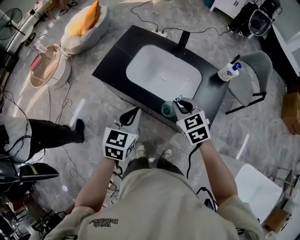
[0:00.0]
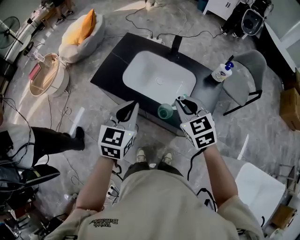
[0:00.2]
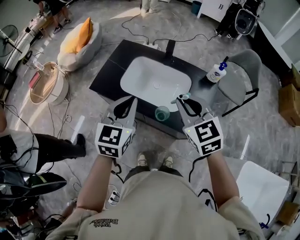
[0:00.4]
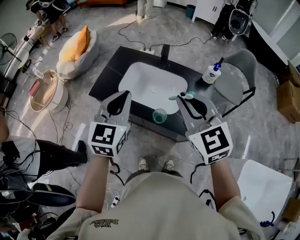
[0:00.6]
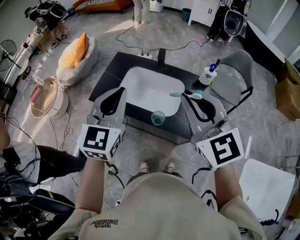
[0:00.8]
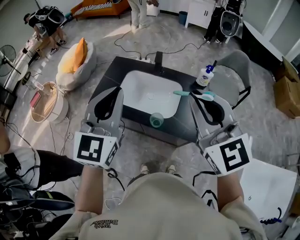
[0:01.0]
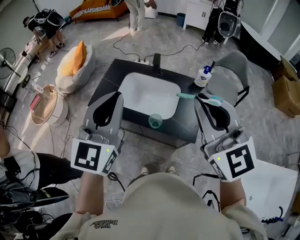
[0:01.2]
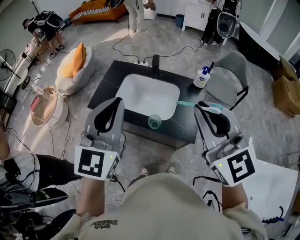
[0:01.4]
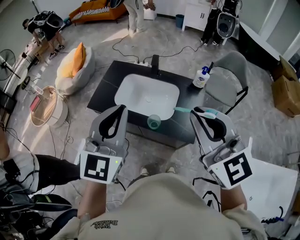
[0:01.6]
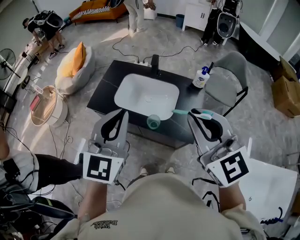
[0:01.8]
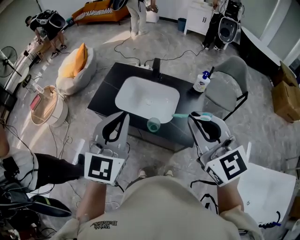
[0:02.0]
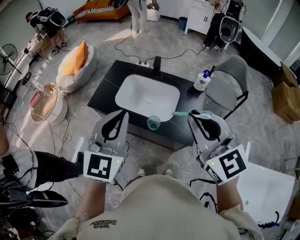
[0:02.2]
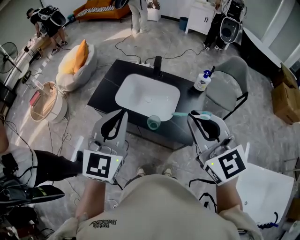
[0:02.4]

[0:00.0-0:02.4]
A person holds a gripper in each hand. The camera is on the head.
0:00.0 to 0:01.2: The two grippers go about 30 cm upward. The left gripper points its fingers about 30 degrees further upward. The right gripper tips its fingers upward by approximately 40 degrees.
0:01.2 to 0:02.4: The right gripper shifts by roughly 5 cm. Meanwhile the left gripper shifts by about 5 cm.

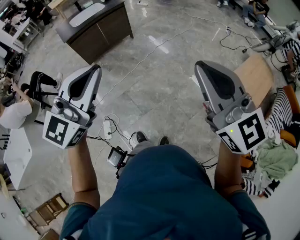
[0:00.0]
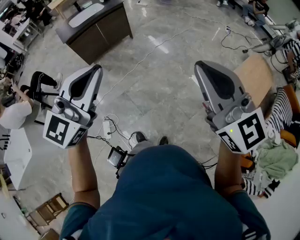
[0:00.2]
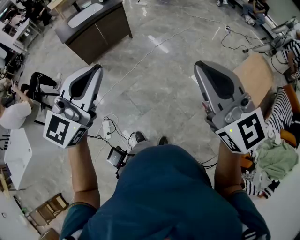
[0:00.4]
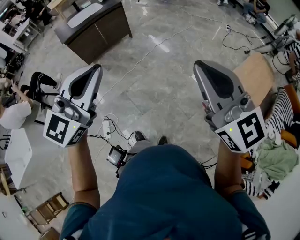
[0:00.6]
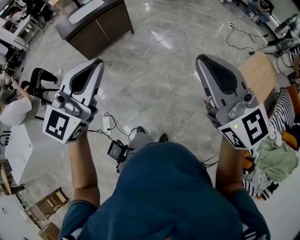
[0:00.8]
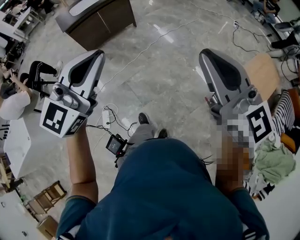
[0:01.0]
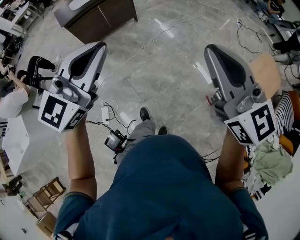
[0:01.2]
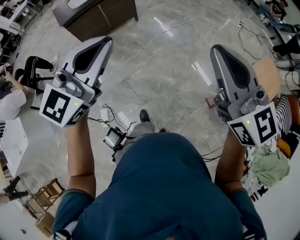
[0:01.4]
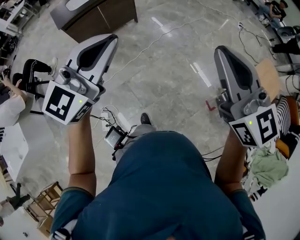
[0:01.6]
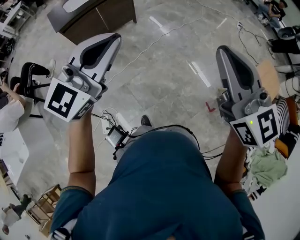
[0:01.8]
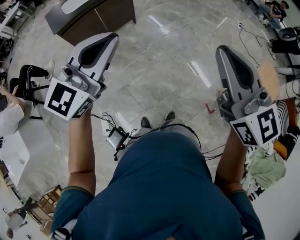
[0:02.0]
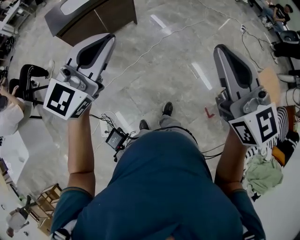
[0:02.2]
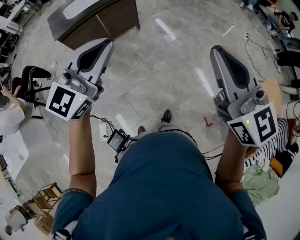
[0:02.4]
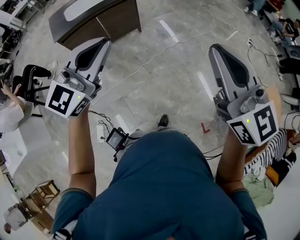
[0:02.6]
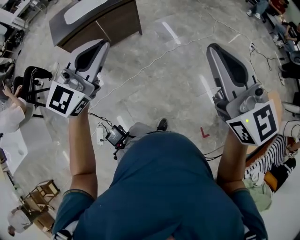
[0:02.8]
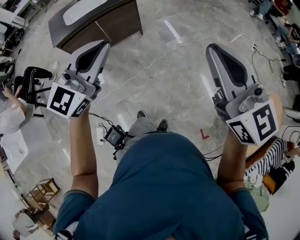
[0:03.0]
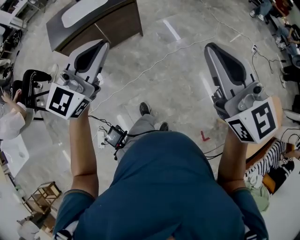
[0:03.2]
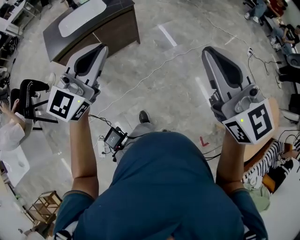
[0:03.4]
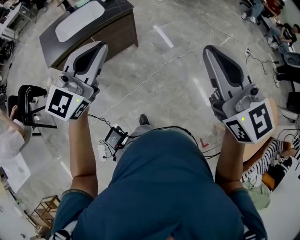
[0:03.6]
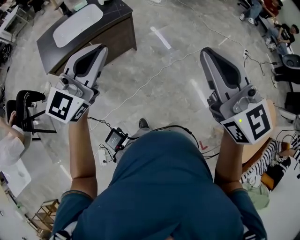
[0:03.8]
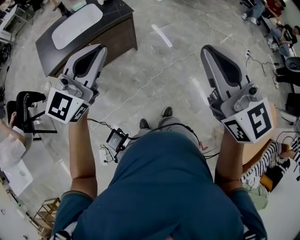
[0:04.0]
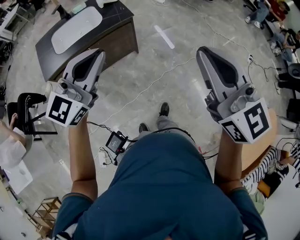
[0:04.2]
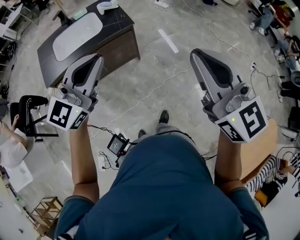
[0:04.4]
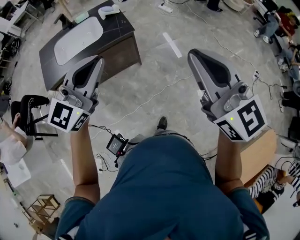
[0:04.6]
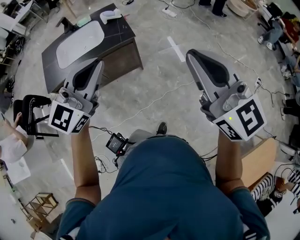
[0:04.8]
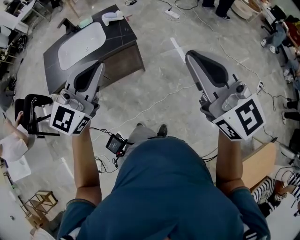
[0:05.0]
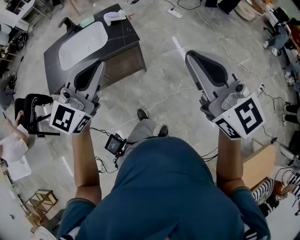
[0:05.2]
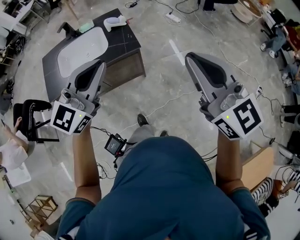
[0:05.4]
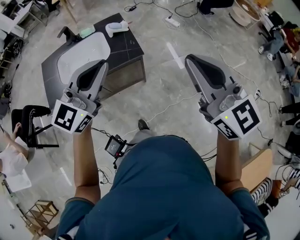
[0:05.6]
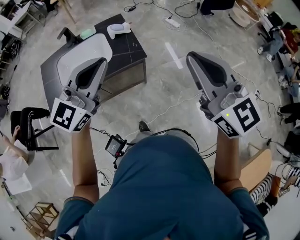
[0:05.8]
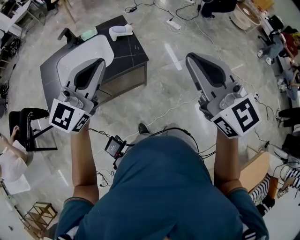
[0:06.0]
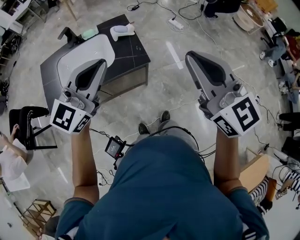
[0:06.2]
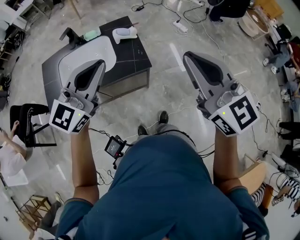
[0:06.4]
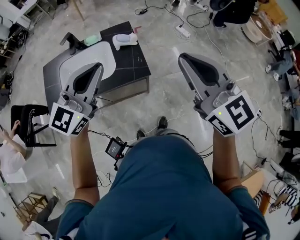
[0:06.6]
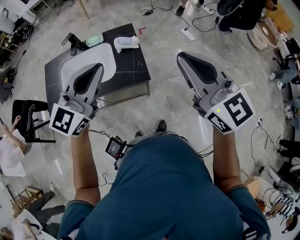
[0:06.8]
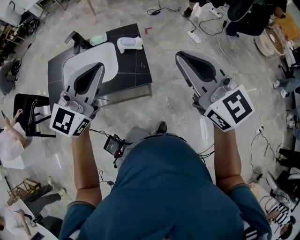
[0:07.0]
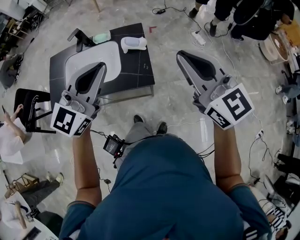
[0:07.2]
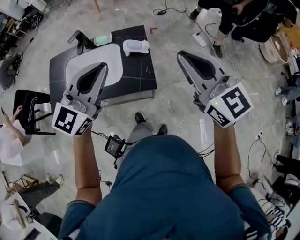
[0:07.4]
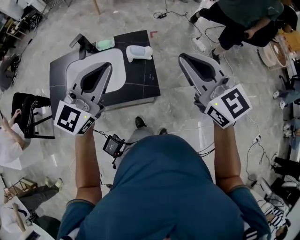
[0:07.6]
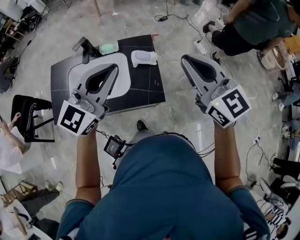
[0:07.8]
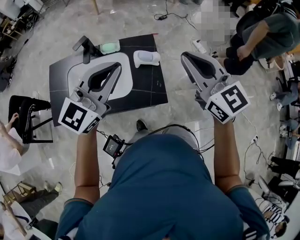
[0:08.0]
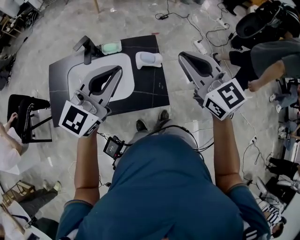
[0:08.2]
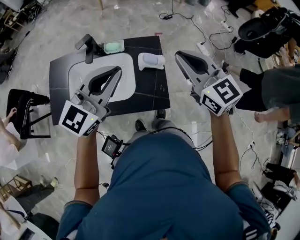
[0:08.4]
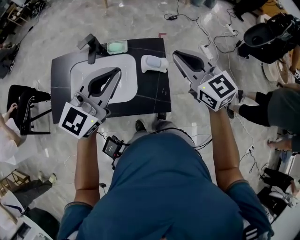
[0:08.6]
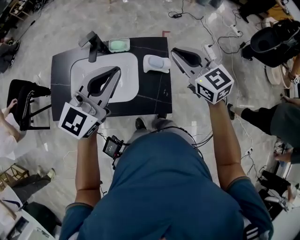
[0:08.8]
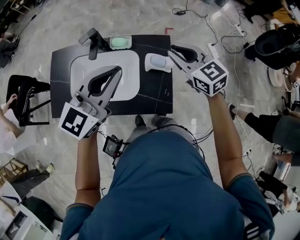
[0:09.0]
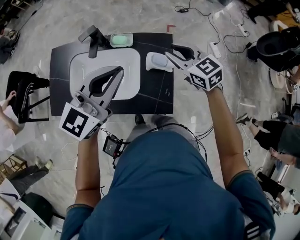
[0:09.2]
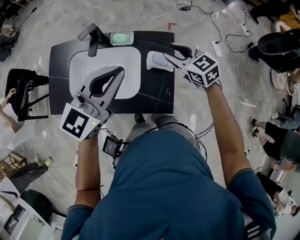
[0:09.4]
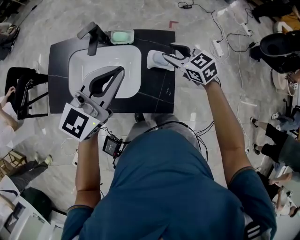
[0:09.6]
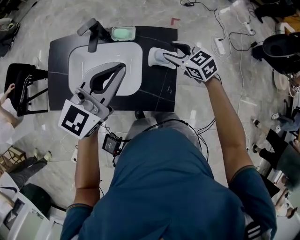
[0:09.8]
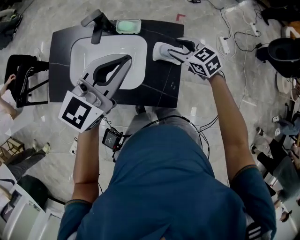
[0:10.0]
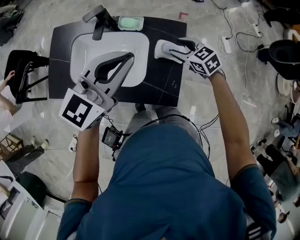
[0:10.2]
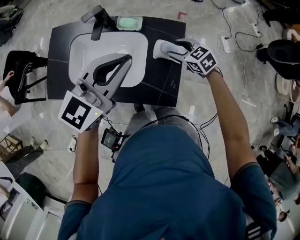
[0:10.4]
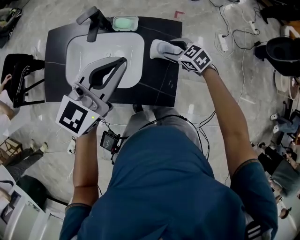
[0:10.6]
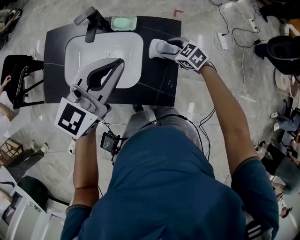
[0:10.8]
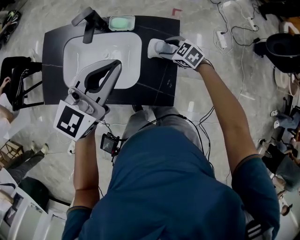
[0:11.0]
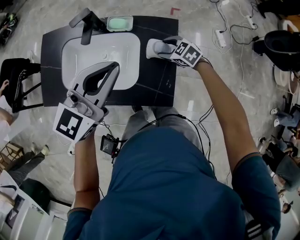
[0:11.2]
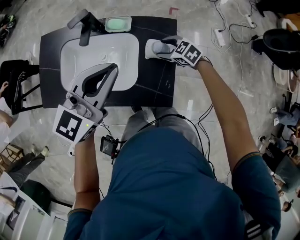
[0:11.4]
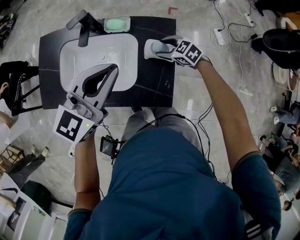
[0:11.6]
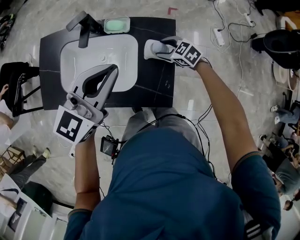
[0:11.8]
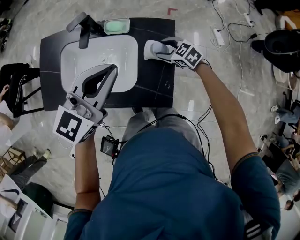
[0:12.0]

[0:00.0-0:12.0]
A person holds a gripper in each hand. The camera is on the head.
0:00.0 to 0:01.6: The two grippers go approximately 20 cm forward.
0:01.6 to 0:03.0: Both grippers move forward, about 30 cm.
0:03.0 to 0:04.4: Both grippers travel together forward, some 30 cm.
0:04.4 to 0:06.0: The two grippers go roughly 25 cm forward.
0:06.0 to 0:07.6: Both grippers move forward, approximately 20 cm.
0:07.6 to 0:09.0: The right gripper travels forward, downward and to the left by roughly 30 cm, and turns by some 20 degrees. The left gripper is displaced forward, to the left and downward by some 15 cm.
0:09.0 to 0:10.4: The right gripper shifts about 20 cm downward, turns by about 30 degrees, and opens up.
0:10.4 to 0:12.0: The right gripper shifts some 5 cm downward.

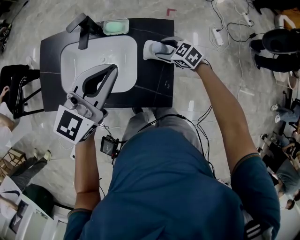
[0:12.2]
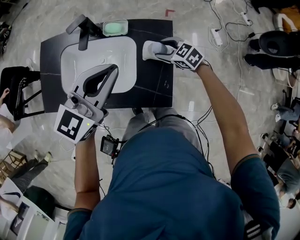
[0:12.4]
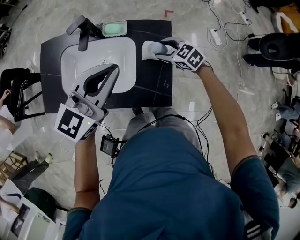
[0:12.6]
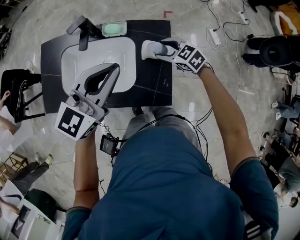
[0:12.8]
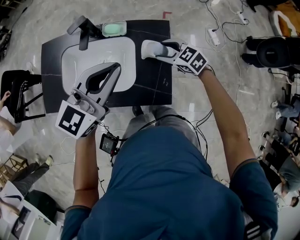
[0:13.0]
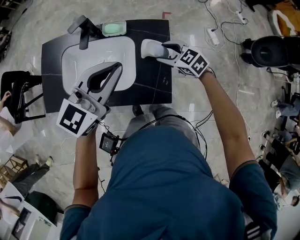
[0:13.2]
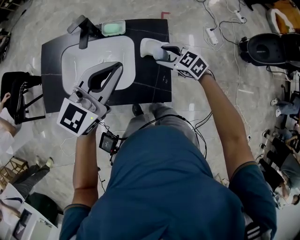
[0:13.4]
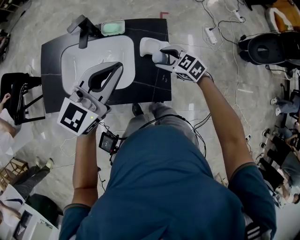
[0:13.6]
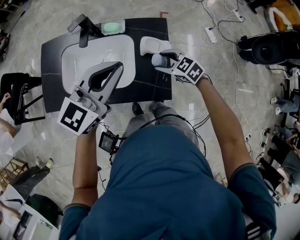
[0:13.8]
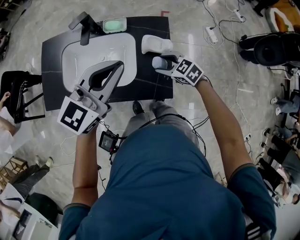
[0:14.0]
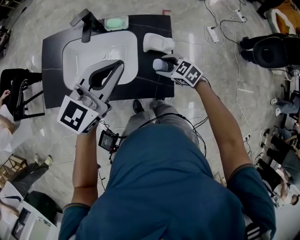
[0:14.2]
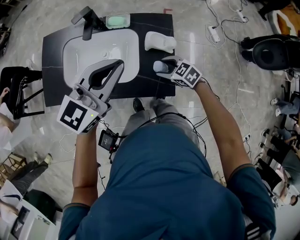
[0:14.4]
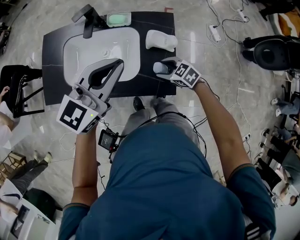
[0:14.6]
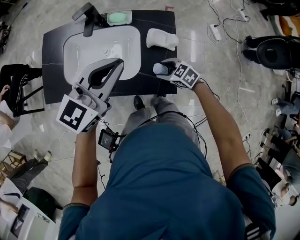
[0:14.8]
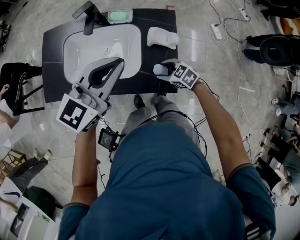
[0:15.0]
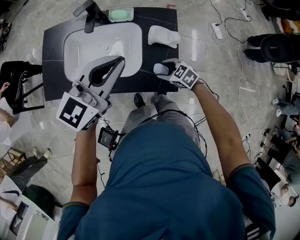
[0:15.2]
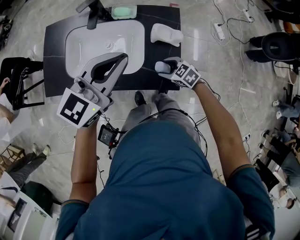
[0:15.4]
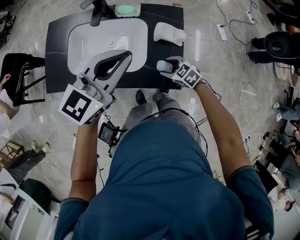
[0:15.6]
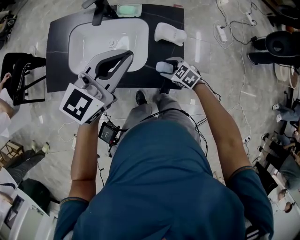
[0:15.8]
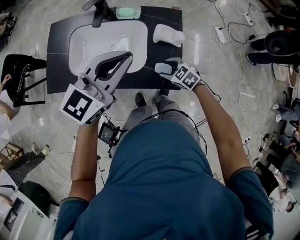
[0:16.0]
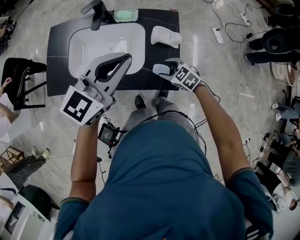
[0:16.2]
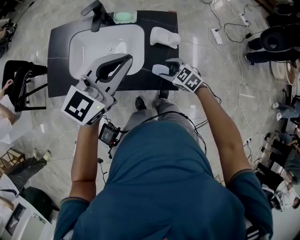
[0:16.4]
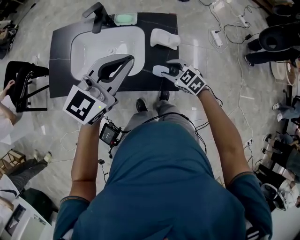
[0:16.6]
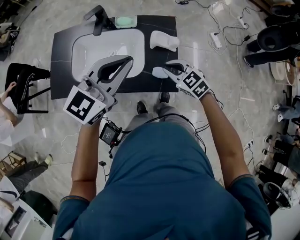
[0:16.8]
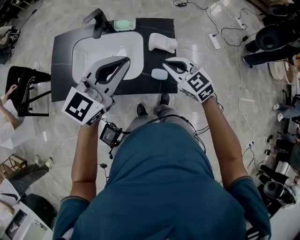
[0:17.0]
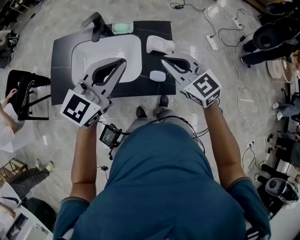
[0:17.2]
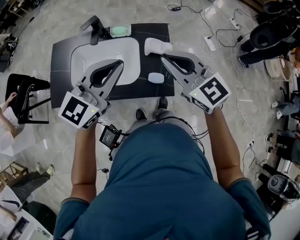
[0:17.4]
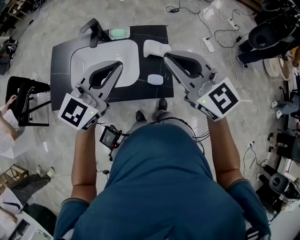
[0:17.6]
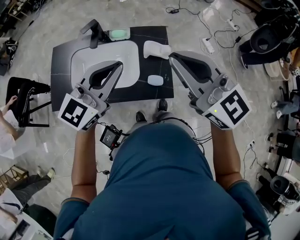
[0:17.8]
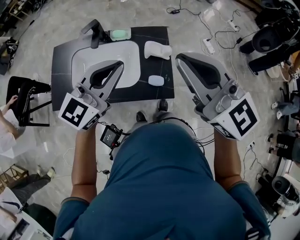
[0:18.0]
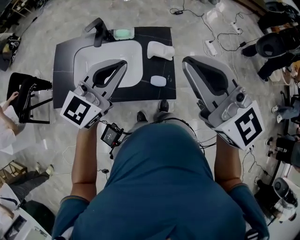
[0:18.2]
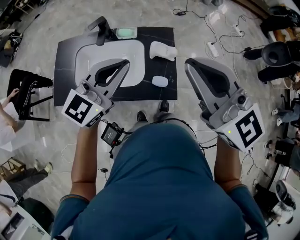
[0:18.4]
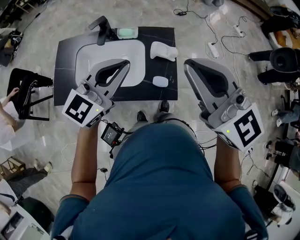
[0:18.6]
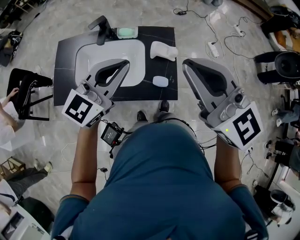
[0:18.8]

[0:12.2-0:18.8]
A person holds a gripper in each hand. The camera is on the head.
0:12.2 to 0:13.8: The right gripper travels backward by roughly 10 cm.
0:13.8 to 0:15.4: The right gripper moves downward and backward, about 10 cm.
0:15.4 to 0:17.2: The right gripper moves upward, some 30 cm, angles its fingers upward, by about 30 degrees, and closes its fingers; the left gripper shifts by about 5 cm.
0:17.2 to 0:18.8: The right gripper is displaced upward by some 20 cm.

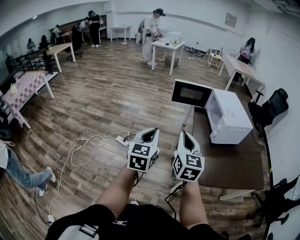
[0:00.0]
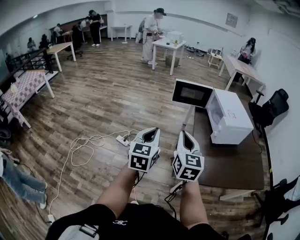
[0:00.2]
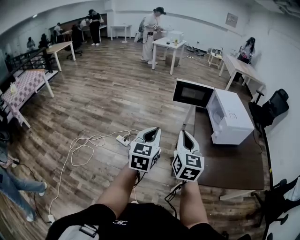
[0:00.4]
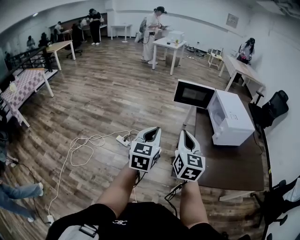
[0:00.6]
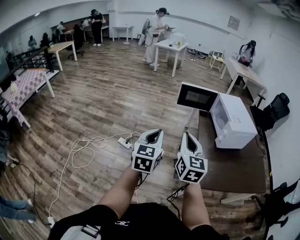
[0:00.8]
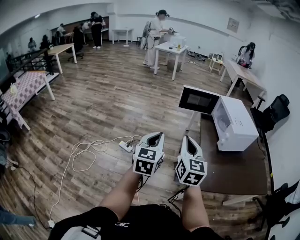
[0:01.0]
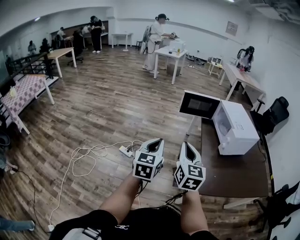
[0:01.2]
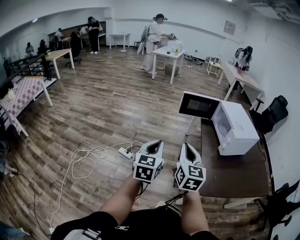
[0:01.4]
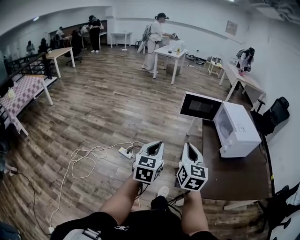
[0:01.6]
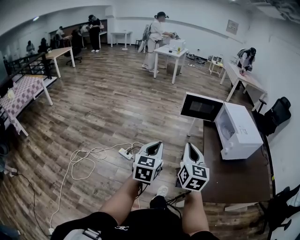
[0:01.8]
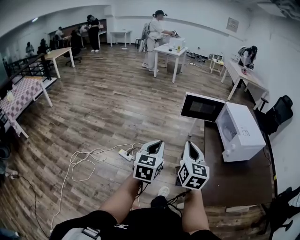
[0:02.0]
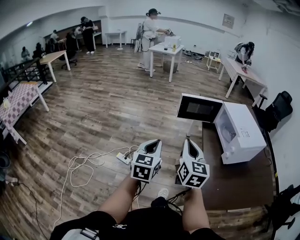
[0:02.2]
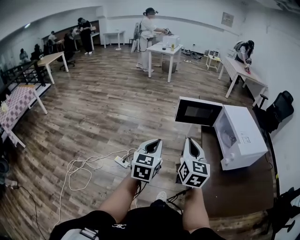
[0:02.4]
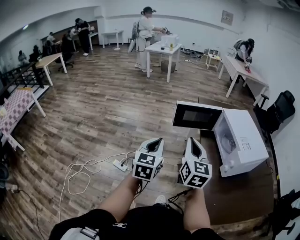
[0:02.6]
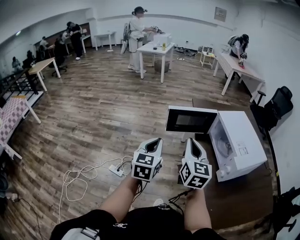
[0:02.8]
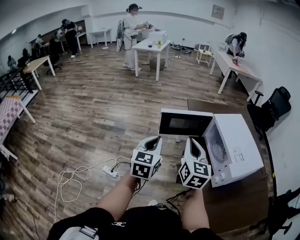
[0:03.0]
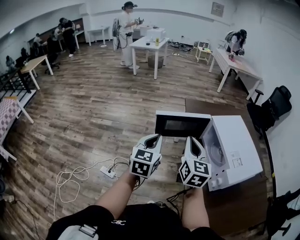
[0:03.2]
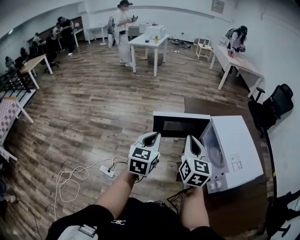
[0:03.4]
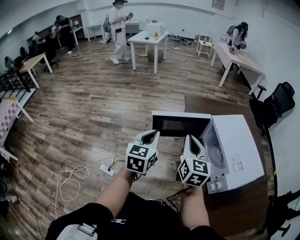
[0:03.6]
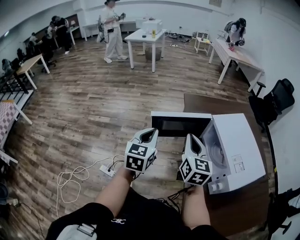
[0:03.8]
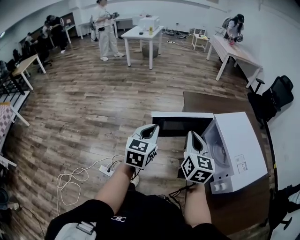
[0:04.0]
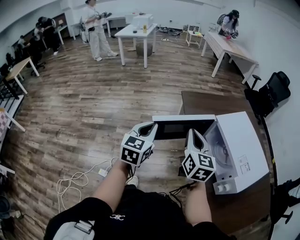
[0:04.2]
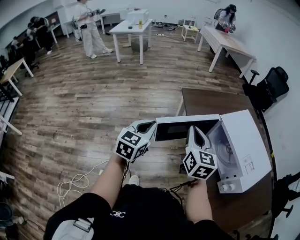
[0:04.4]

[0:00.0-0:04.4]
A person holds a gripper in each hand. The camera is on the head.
0:00.0 to 0:01.4: Both grippers travel together to the left, roughly 10 cm.
0:01.4 to 0:03.0: Both grippers travel together forward, some 40 cm.
0:03.0 to 0:04.4: The two grippers go approximately 20 cm forward. The left gripper changes its angle by about 20 degrees.
